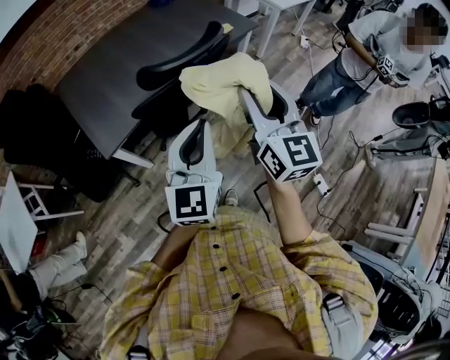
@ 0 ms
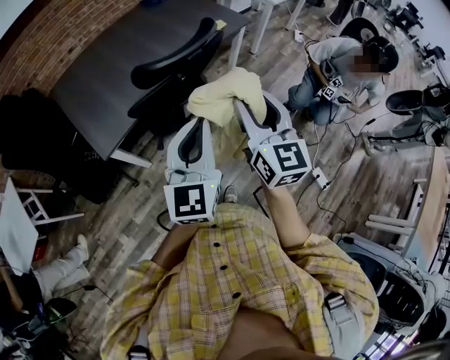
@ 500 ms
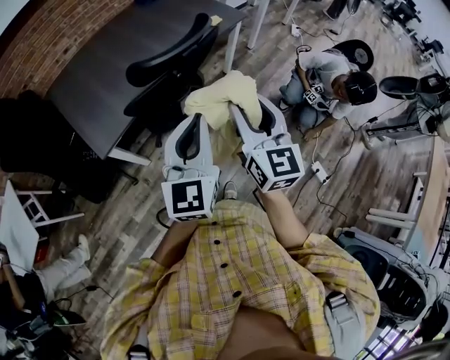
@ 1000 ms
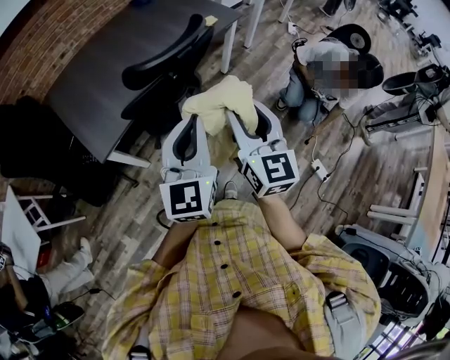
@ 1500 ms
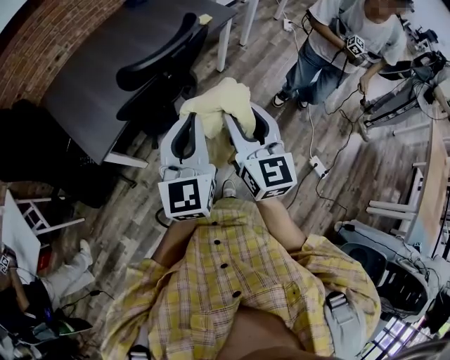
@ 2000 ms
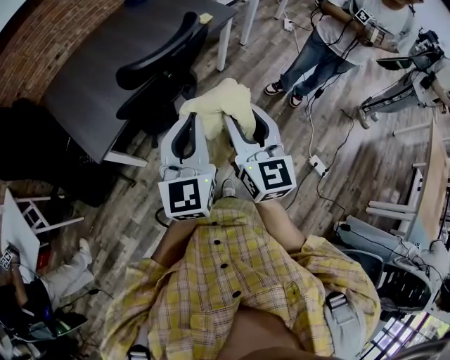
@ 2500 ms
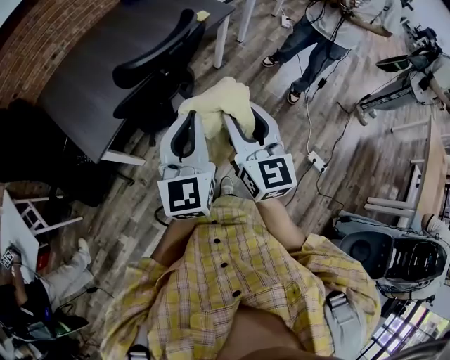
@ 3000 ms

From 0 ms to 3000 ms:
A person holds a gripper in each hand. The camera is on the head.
From 0 ms to 1500 ms: The right gripper is displaced downward by roughly 5 cm.
From 1500 ms to 3000 ms: The grippers stay close to where they were, moving slightly.

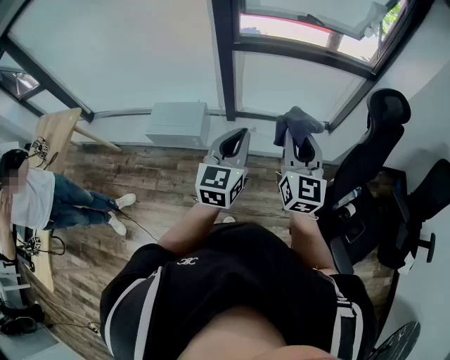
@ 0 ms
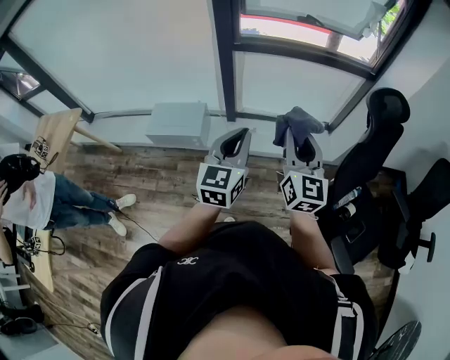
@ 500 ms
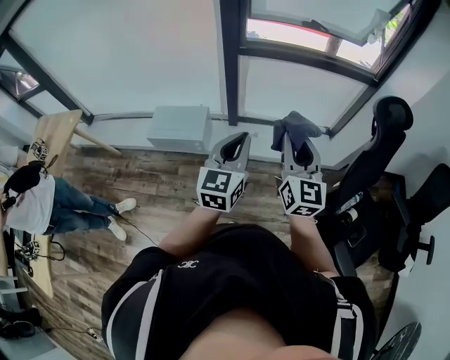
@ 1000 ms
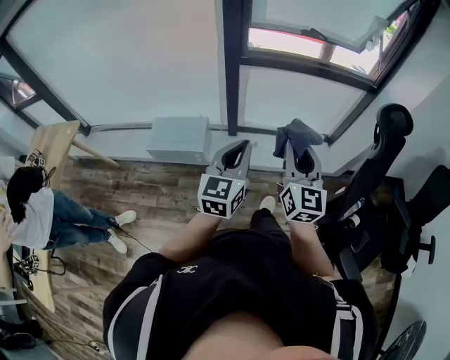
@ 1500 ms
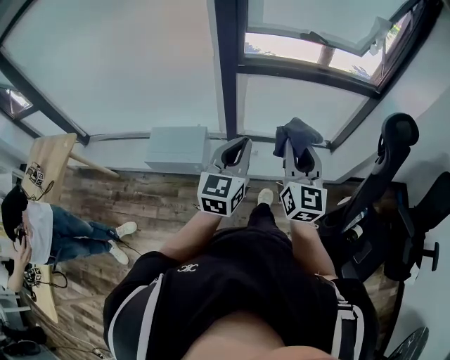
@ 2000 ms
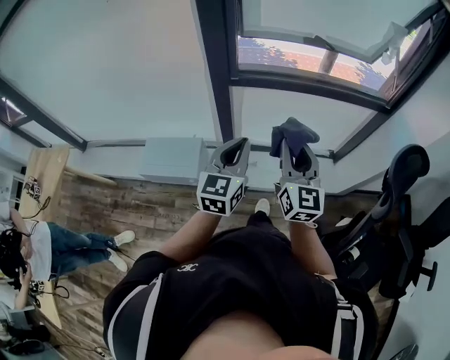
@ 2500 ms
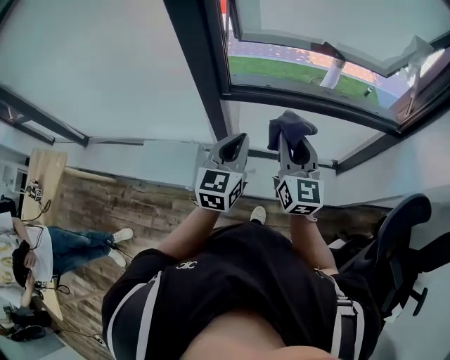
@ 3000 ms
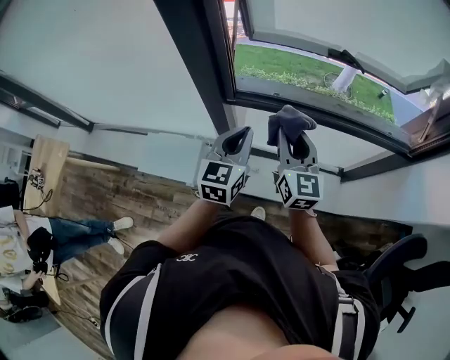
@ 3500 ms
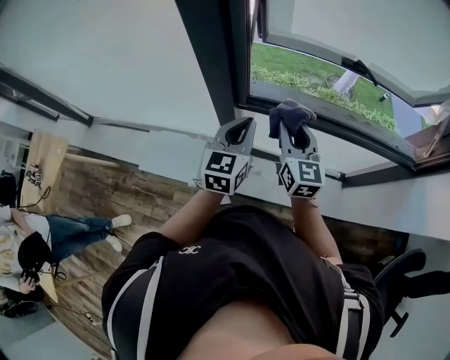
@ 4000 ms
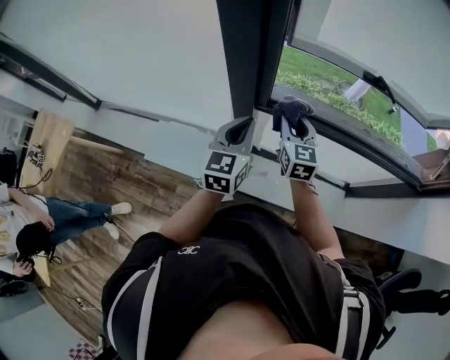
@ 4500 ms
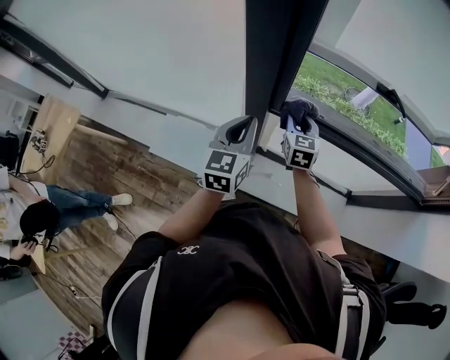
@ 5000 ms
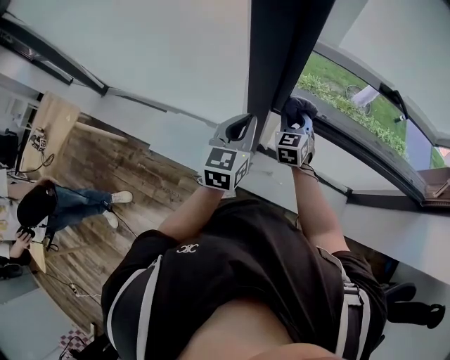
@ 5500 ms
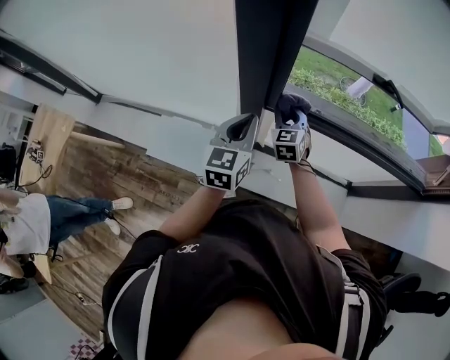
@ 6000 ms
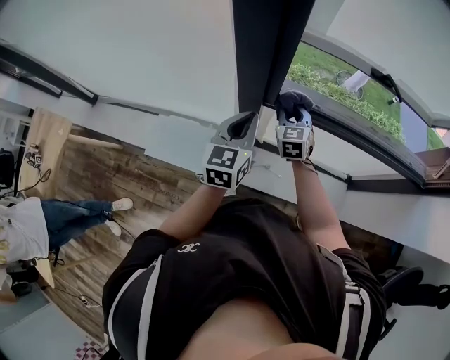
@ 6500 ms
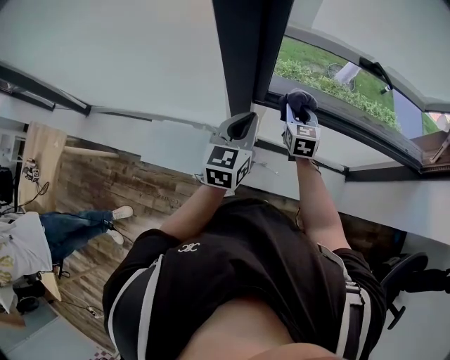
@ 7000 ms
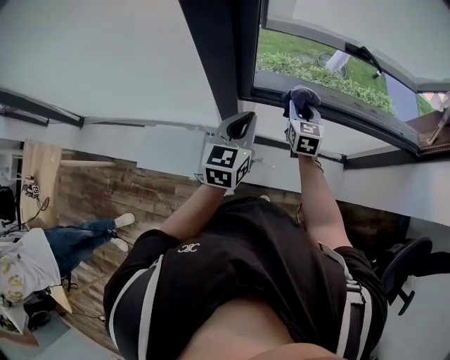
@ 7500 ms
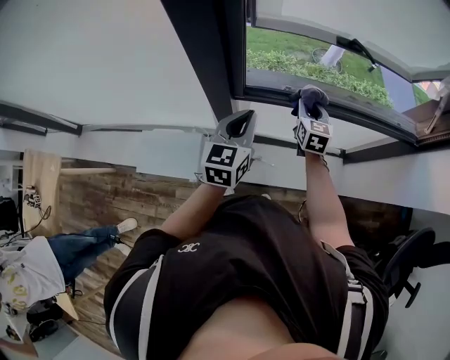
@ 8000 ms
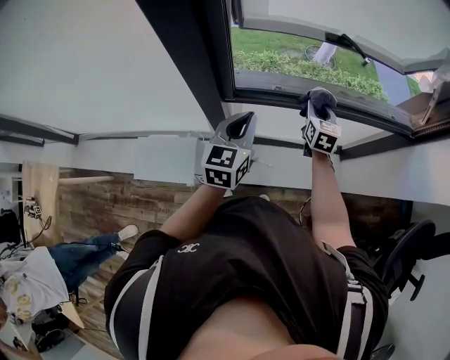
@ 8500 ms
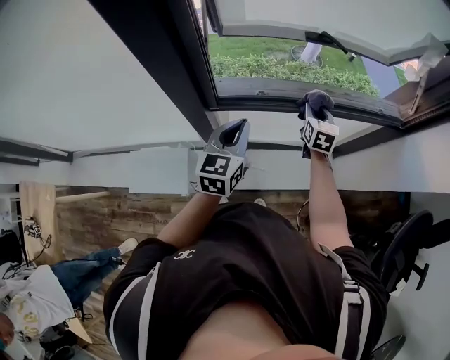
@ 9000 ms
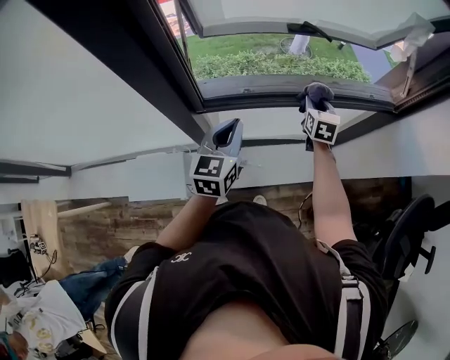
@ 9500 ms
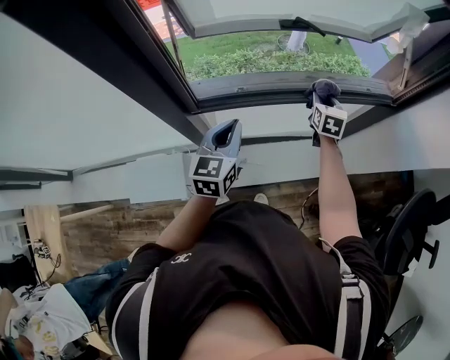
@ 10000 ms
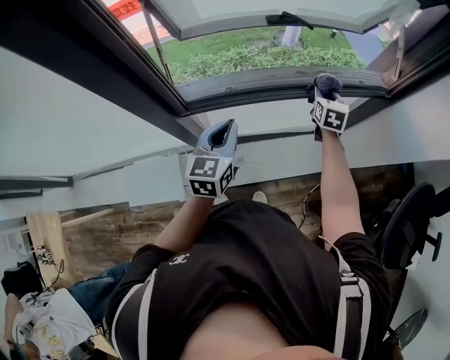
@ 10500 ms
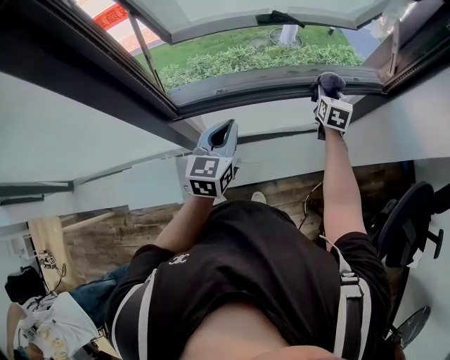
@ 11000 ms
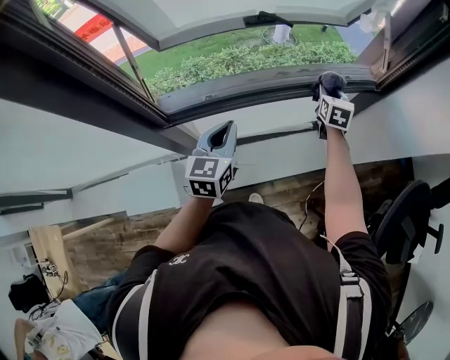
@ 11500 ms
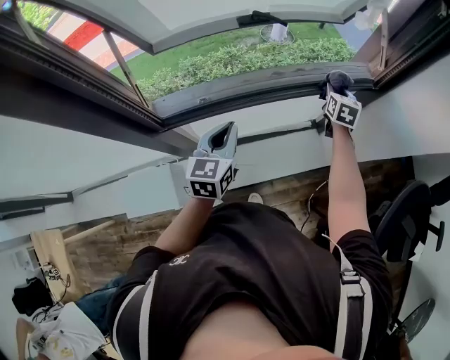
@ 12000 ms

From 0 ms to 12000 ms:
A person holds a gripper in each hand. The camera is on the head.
From 0 ms to 2000 ms: The two grippers go roughly 10 cm forward and to the left.
From 2000 ms to 4000 ms: The pair of grippers is taken forward, about 40 cm. The right gripper changes its angle by some 20 degrees.
From 4000 ms to 6000 ms: The right gripper travels downward, forward and to the left by roughly 20 cm, and rotates roughly 30 degrees; the left gripper shifts about 10 cm to the left.
From 6000 ms to 8000 ms: The right gripper heads to the right, covering some 20 cm, and turns by some 30 degrees. Meanwhile the left gripper moves to the right, approximately 10 cm.
From 8000 ms to 10000 ms: The left gripper travels to the right by roughly 10 cm. The right gripper moves to the right, some 20 cm.
From 10000 ms to 12000 ms: The left gripper travels to the right and forward by some 10 cm, while the right gripper moves to the right and forward, some 20 cm.

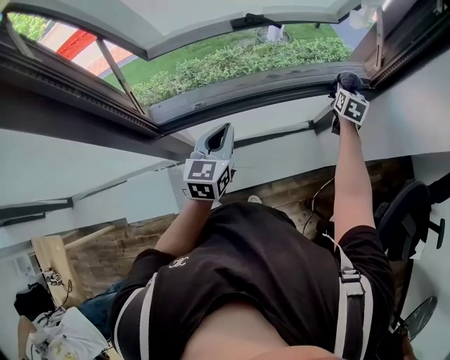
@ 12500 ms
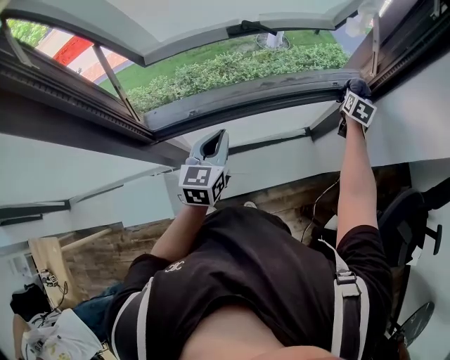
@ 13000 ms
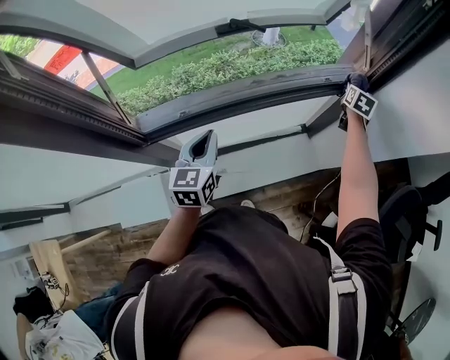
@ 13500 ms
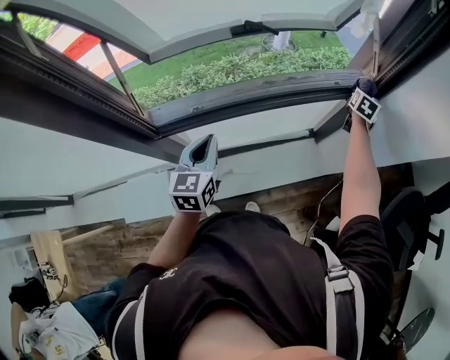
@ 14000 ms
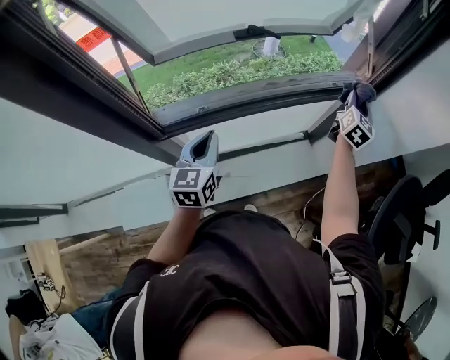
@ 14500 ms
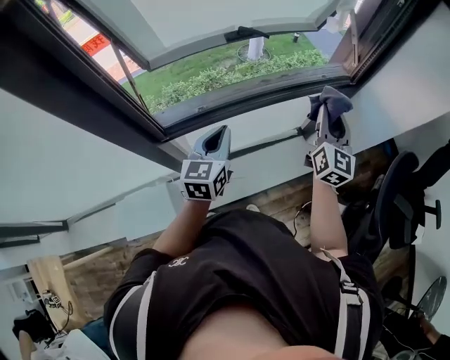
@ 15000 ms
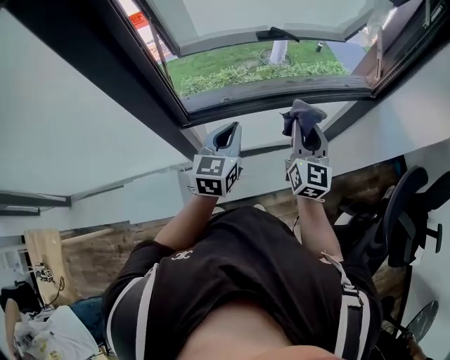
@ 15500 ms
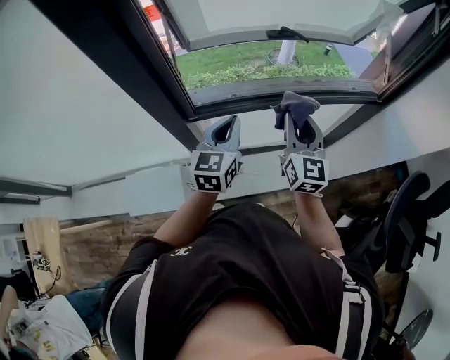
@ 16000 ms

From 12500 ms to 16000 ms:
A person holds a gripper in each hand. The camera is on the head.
From 12500 ms to 14500 ms: The left gripper shifts by roughly 5 cm, while the right gripper travels upward and backward by approximately 15 cm, and rotates approximately 30 degrees.
From 14500 ms to 16000 ms: The right gripper shifts about 35 cm to the left and backward, and changes its angle by roughly 40 degrees. The left gripper moves some 5 cm.

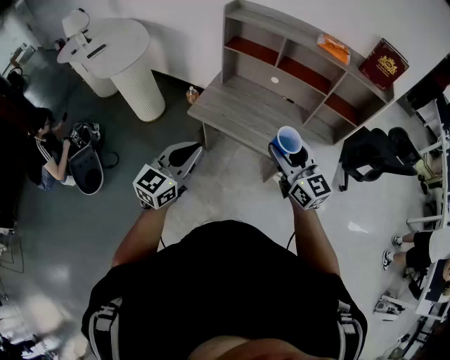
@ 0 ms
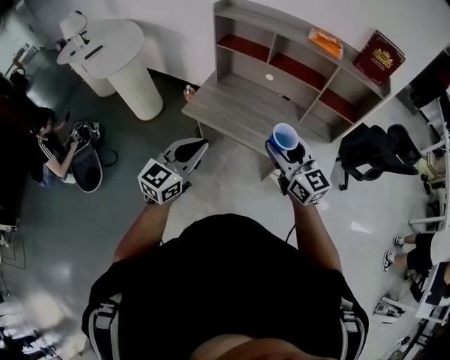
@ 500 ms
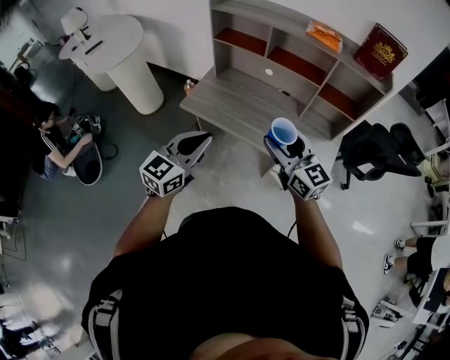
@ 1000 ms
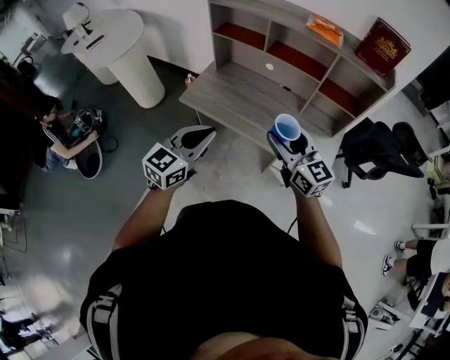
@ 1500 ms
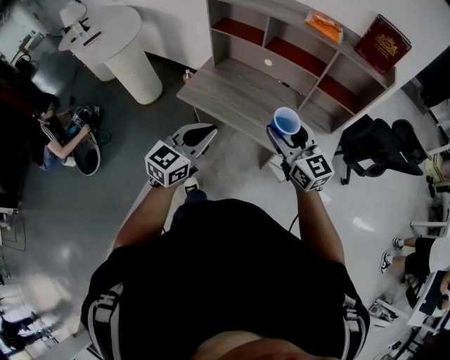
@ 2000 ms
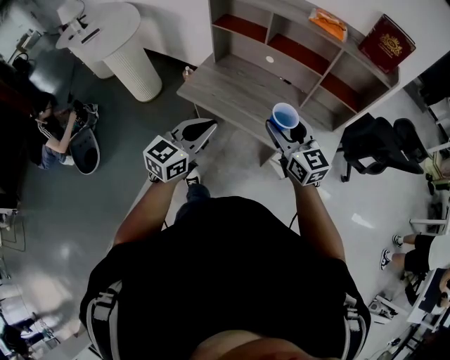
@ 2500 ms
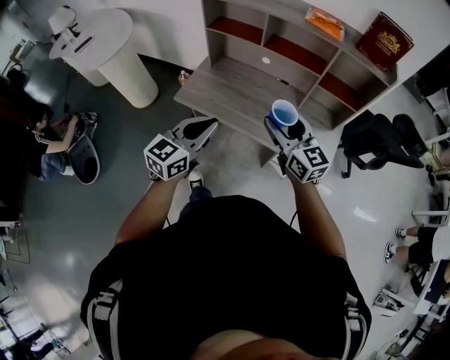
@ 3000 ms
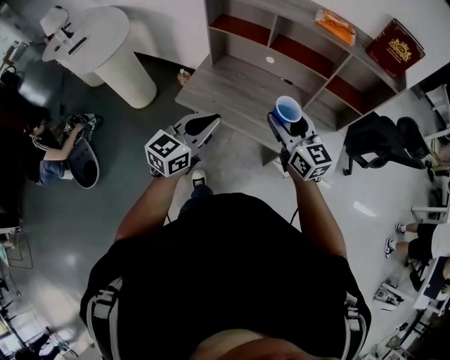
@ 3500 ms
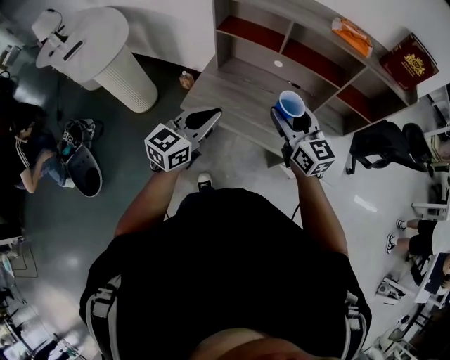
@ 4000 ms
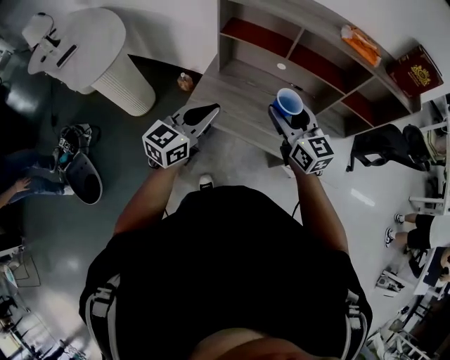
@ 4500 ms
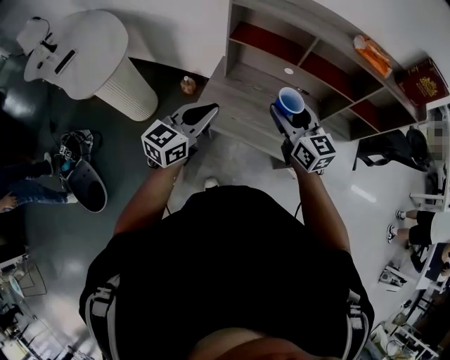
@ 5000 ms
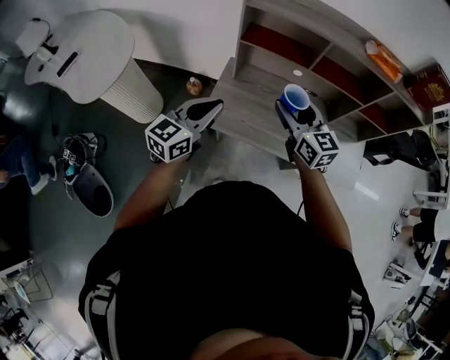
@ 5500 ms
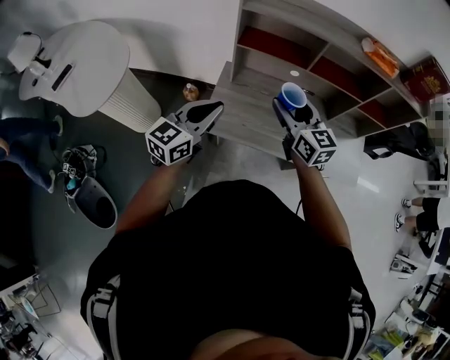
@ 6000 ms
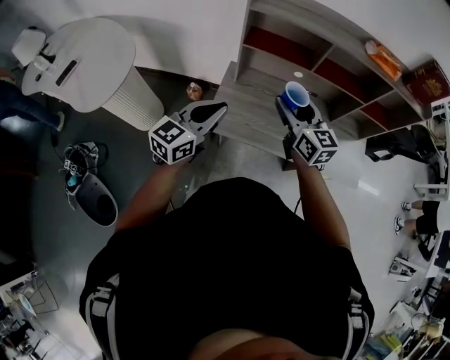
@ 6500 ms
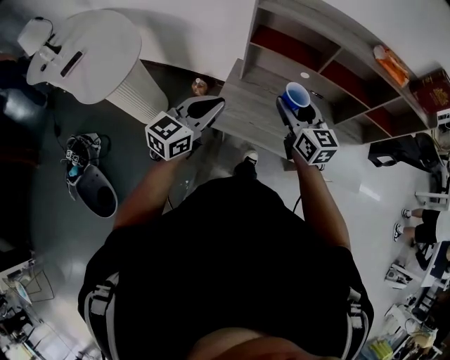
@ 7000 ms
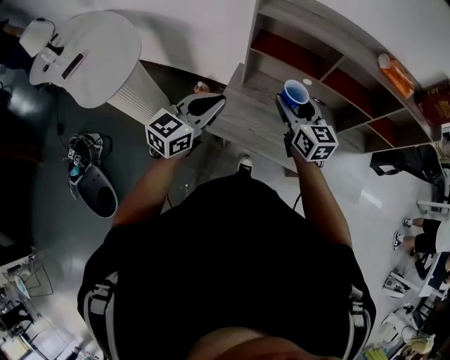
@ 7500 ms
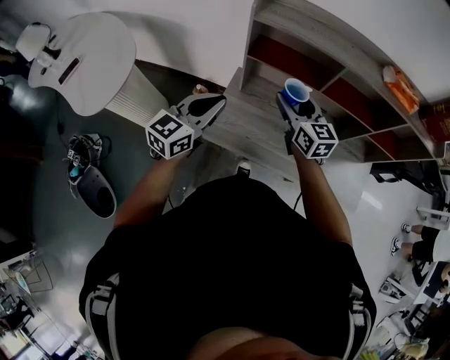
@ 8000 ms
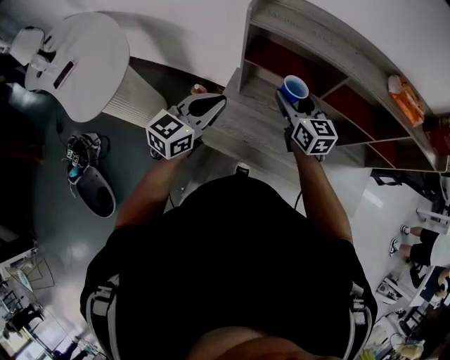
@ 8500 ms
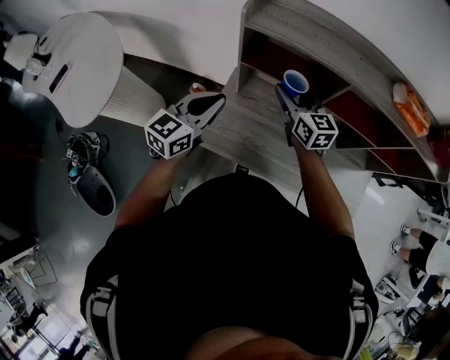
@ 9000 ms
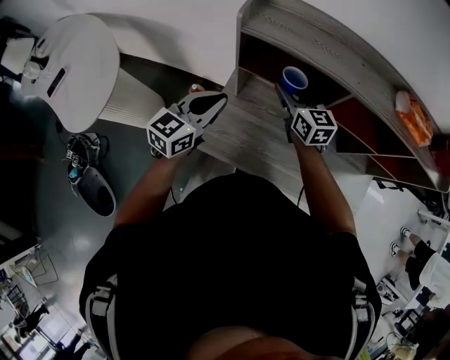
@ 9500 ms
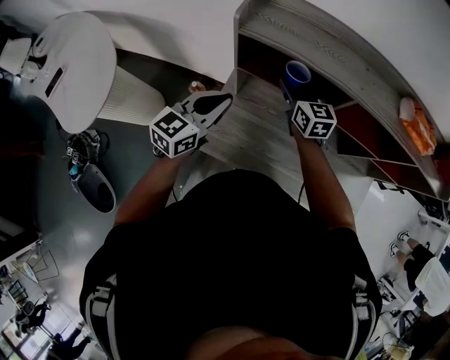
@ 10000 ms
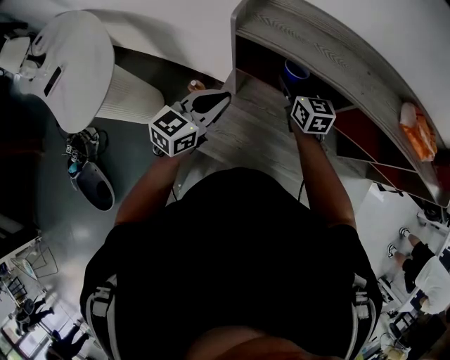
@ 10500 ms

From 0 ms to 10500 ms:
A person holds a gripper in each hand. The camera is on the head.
From 0 ms to 2000 ms: Both grippers travel together to the right, some 15 cm.
From 2000 ms to 4000 ms: The two grippers go some 20 cm forward and to the left.
From 4000 ms to 6500 ms: The grippers both shift to the left and forward by some 20 cm.
From 6500 ms to 8500 ms: Both grippers move forward, about 15 cm.
From 8500 ms to 10500 ms: The grippers both shift forward by roughly 10 cm.
